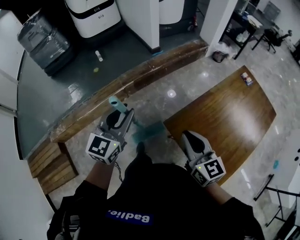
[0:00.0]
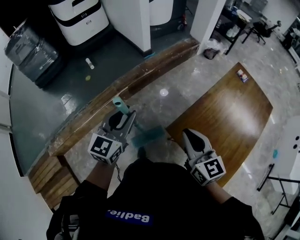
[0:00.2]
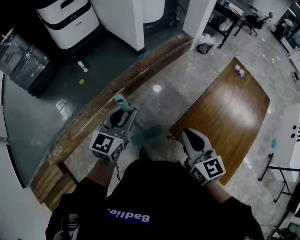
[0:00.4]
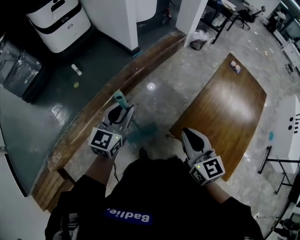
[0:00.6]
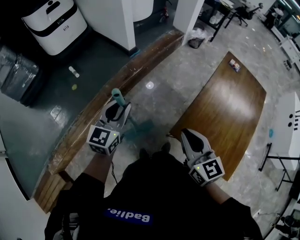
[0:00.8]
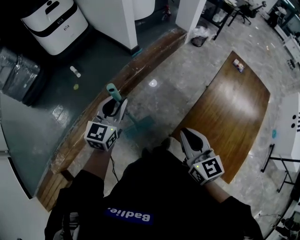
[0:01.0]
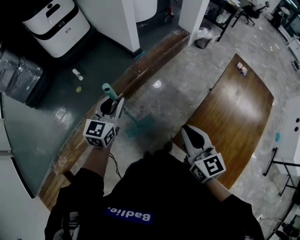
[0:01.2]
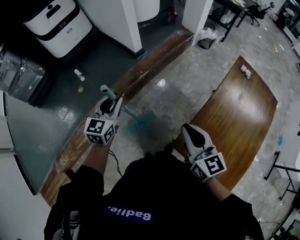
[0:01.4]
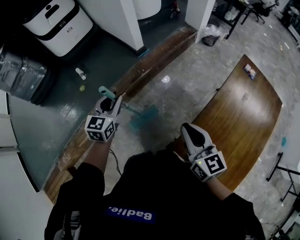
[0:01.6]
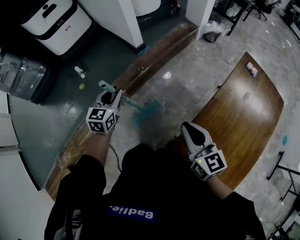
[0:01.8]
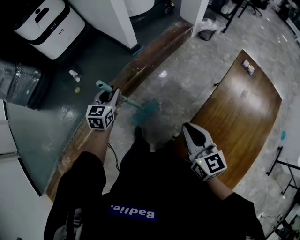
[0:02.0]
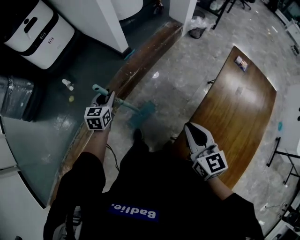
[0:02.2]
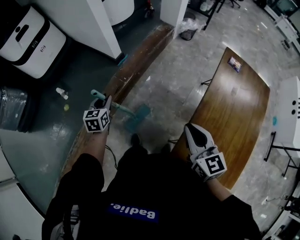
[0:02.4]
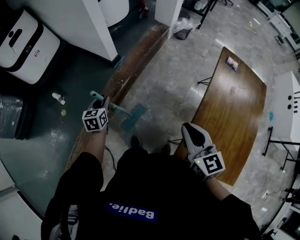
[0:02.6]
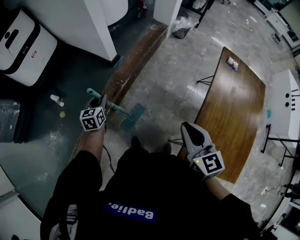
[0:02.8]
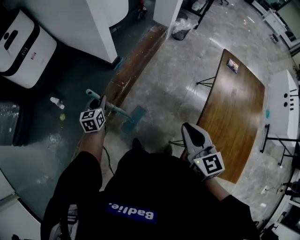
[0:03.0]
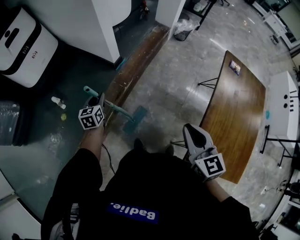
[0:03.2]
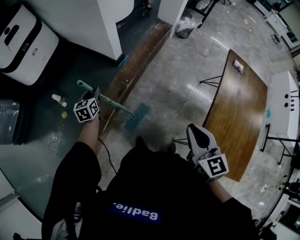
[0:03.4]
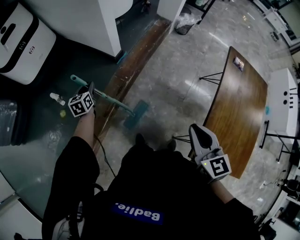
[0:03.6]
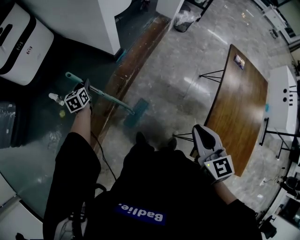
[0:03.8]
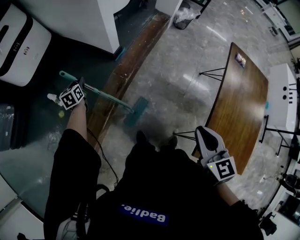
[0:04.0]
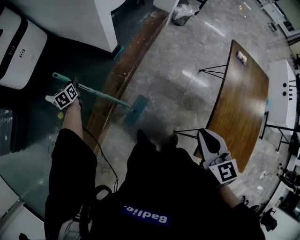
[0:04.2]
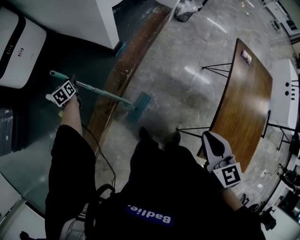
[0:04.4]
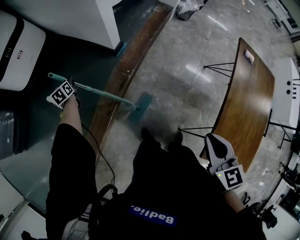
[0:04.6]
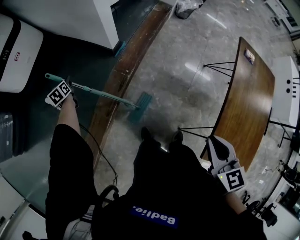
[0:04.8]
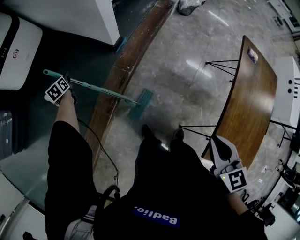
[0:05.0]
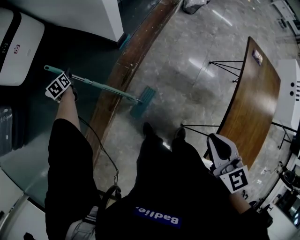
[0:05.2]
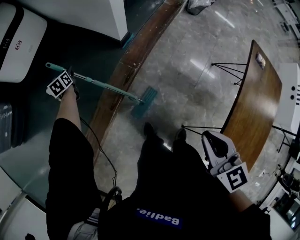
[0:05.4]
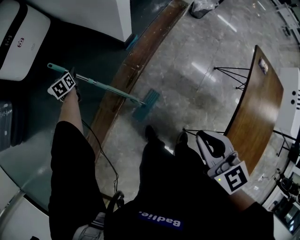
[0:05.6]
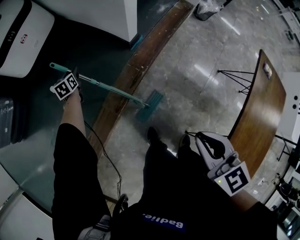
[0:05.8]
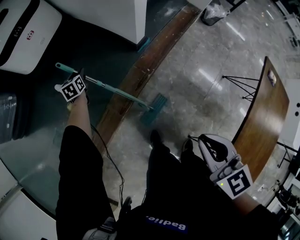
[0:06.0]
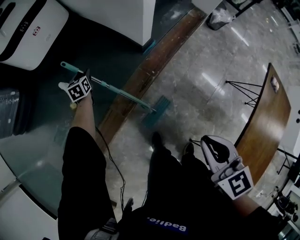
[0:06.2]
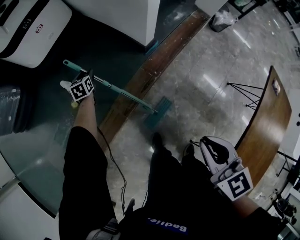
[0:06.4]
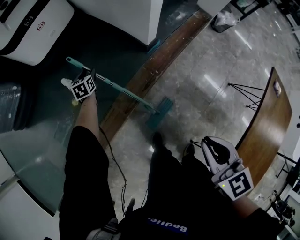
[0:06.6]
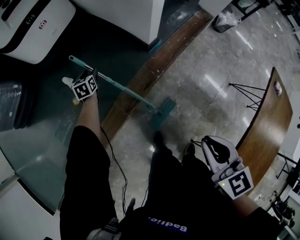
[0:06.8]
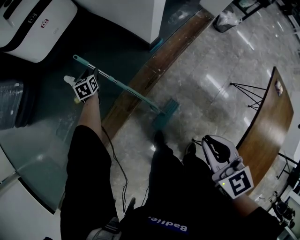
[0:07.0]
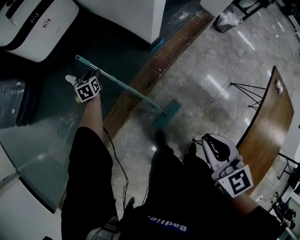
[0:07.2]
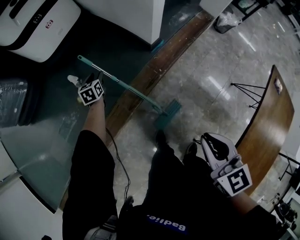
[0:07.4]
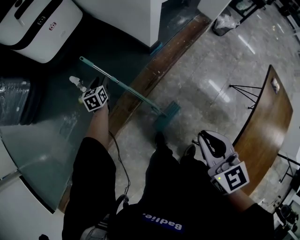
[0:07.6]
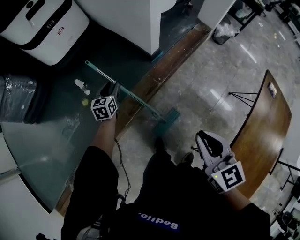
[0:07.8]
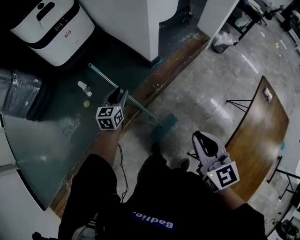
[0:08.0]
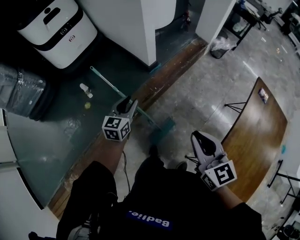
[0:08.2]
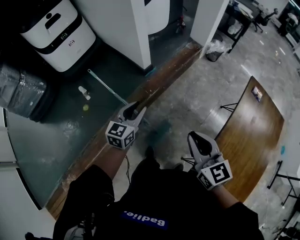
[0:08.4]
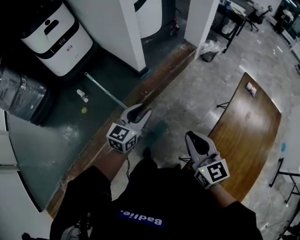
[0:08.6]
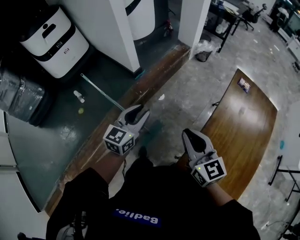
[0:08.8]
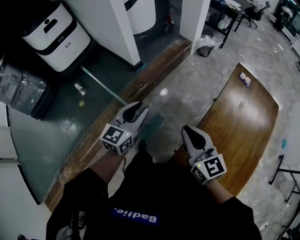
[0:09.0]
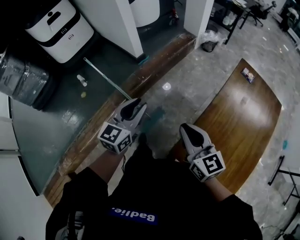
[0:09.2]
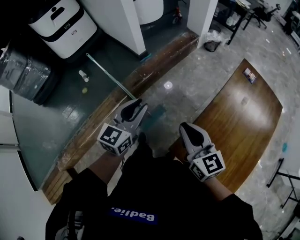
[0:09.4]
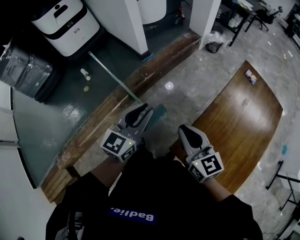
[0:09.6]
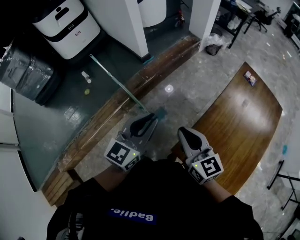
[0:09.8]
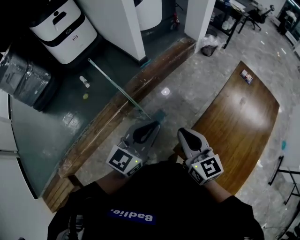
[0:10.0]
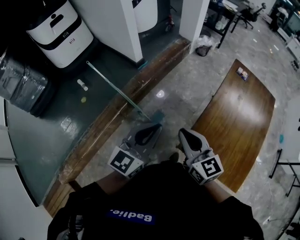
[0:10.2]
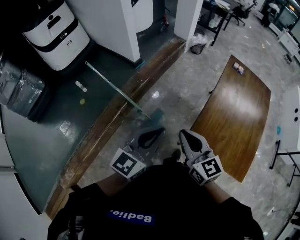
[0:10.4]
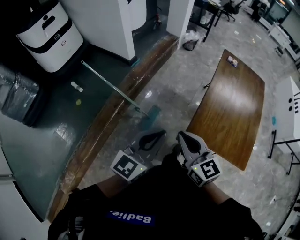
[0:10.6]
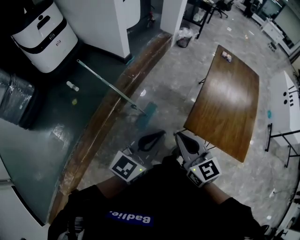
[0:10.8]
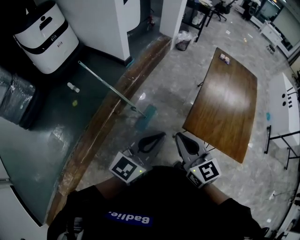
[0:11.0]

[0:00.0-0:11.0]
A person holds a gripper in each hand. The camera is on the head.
0:00.0 to 0:01.6: The two grippers go roughly 25 cm forward.
0:01.6 to 0:03.2: The right gripper heads forward and to the left, covering roughly 15 cm, and changes its angle by approximately 20 degrees. The left gripper moves forward, downward and to the left, approximately 30 cm.
0:03.2 to 0:04.8: The right gripper moves about 5 cm. Meanwhile the left gripper is displaced to the left, forward and downward by approximately 35 cm, and turns by approximately 20 degrees.
0:04.8 to 0:06.2: The right gripper shifts some 15 cm forward and to the left, and changes its angle by approximately 20 degrees, while the left gripper changes place by about 5 cm.
0:06.2 to 0:07.8: The right gripper shifts about 5 cm backward. Meanwhile the left gripper is displaced backward, upward and to the right by approximately 20 cm.
0:07.8 to 0:09.4: The right gripper moves to the right and backward, some 30 cm, while the left gripper moves to the right, backward and upward, roughly 60 cm, and turns by approximately 30 degrees.
0:09.4 to 0:11.0: The left gripper goes roughly 25 cm backward, turns by approximately 30 degrees, and closes; the right gripper shifts about 25 cm backward and to the left.

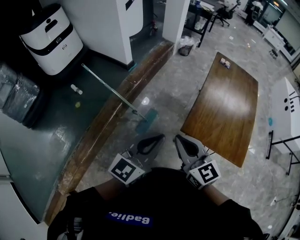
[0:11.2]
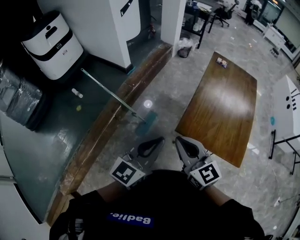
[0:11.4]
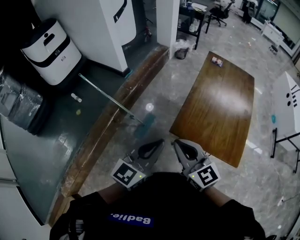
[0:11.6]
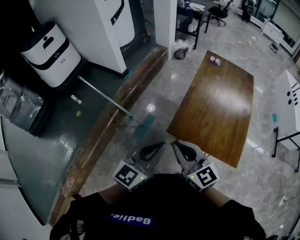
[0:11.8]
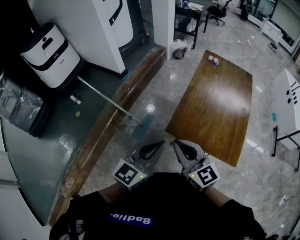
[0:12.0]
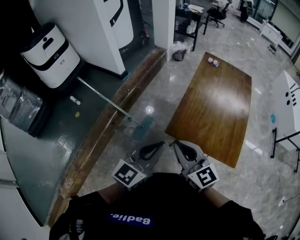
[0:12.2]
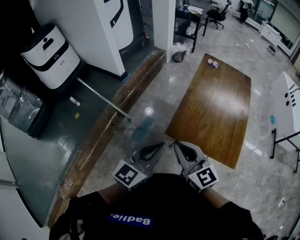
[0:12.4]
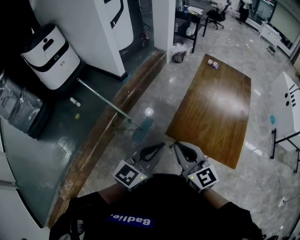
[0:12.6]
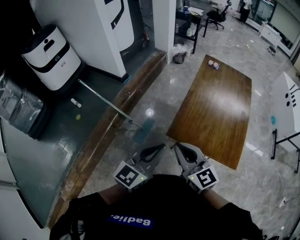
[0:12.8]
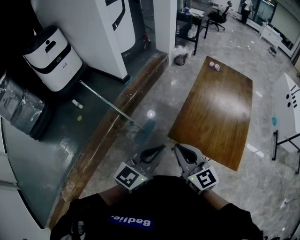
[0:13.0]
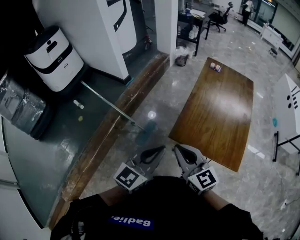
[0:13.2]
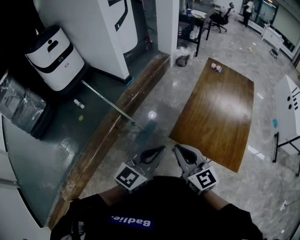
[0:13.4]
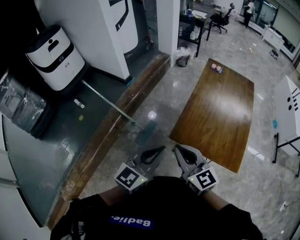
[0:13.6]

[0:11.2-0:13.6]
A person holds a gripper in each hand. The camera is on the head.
0:11.2 to 0:12.4: The grippers both shift to the right by approximately 15 cm.
0:12.4 to 0:13.6: The grippers stay close to where they were, moving slightly.

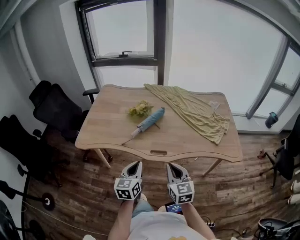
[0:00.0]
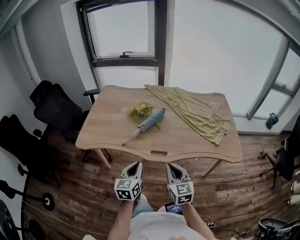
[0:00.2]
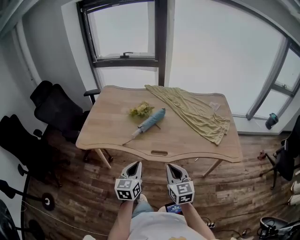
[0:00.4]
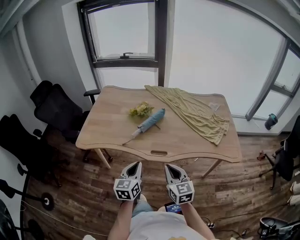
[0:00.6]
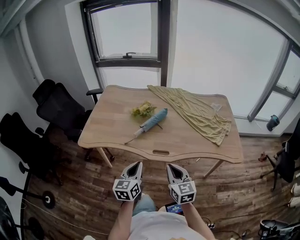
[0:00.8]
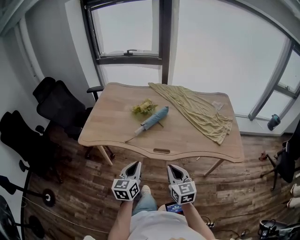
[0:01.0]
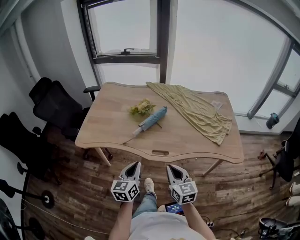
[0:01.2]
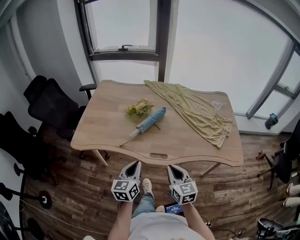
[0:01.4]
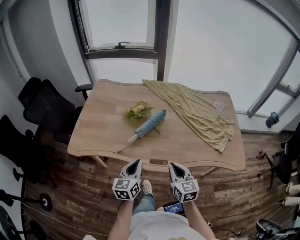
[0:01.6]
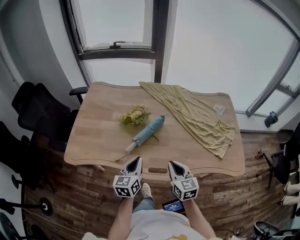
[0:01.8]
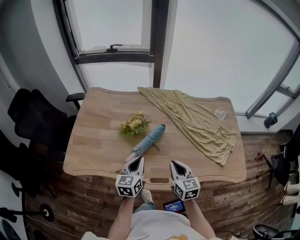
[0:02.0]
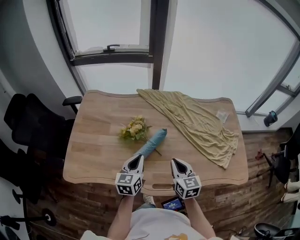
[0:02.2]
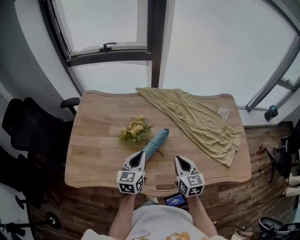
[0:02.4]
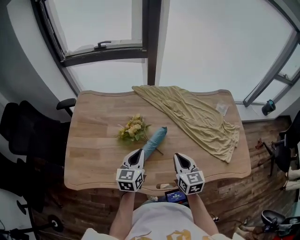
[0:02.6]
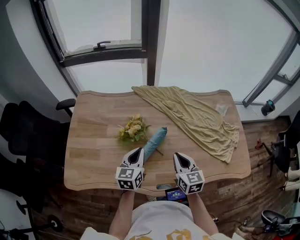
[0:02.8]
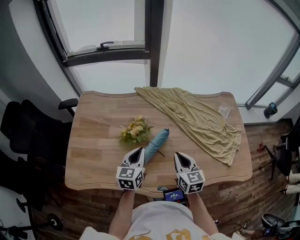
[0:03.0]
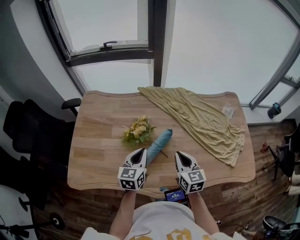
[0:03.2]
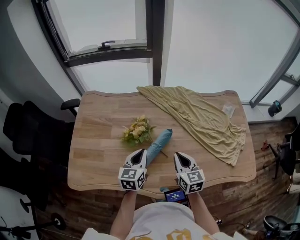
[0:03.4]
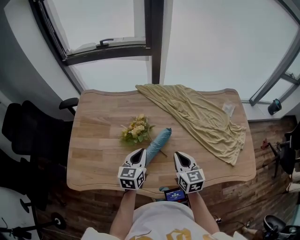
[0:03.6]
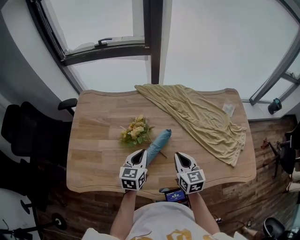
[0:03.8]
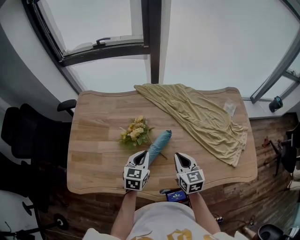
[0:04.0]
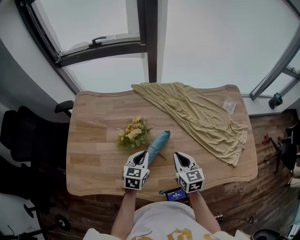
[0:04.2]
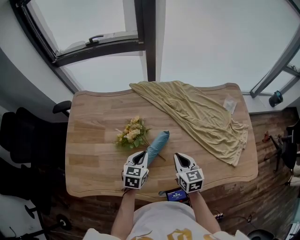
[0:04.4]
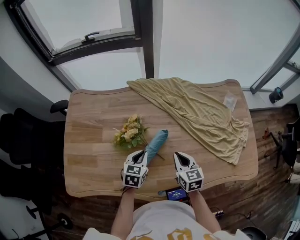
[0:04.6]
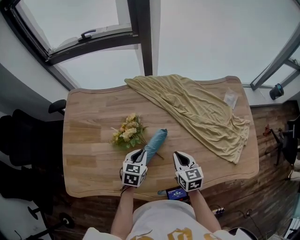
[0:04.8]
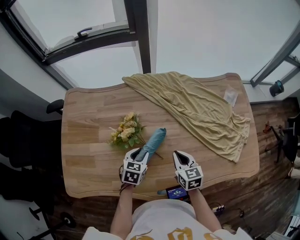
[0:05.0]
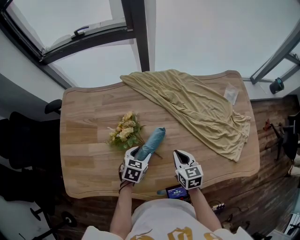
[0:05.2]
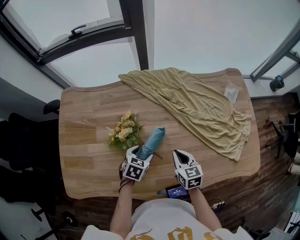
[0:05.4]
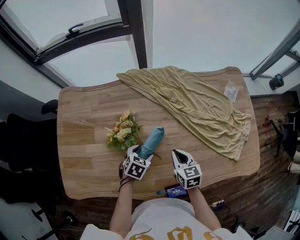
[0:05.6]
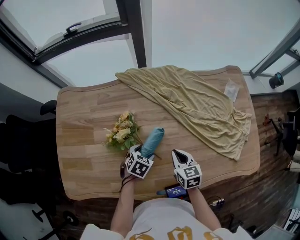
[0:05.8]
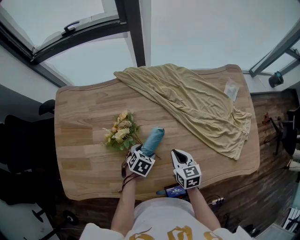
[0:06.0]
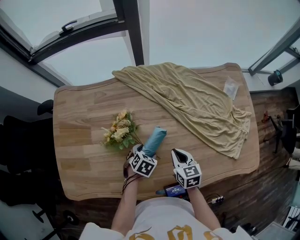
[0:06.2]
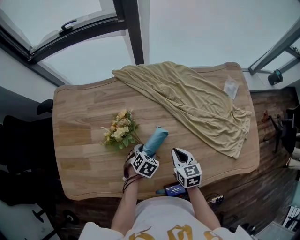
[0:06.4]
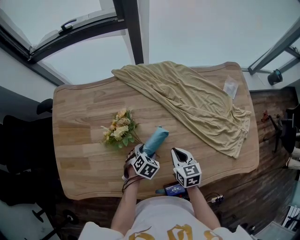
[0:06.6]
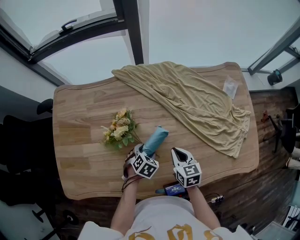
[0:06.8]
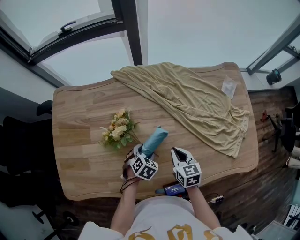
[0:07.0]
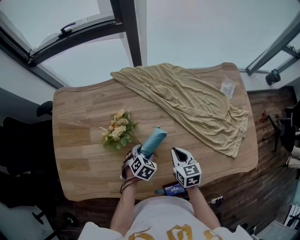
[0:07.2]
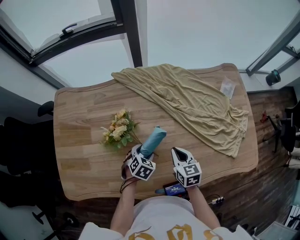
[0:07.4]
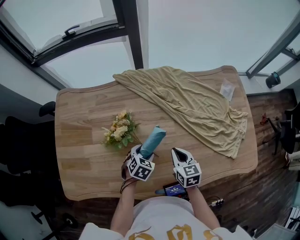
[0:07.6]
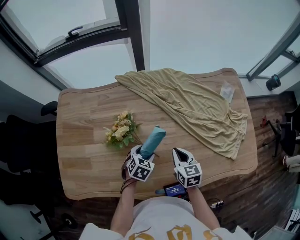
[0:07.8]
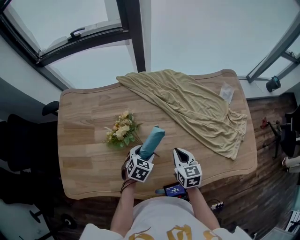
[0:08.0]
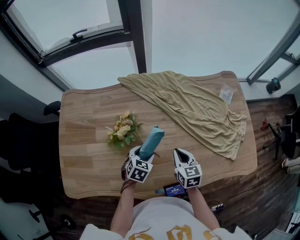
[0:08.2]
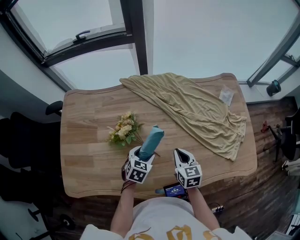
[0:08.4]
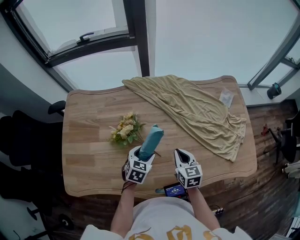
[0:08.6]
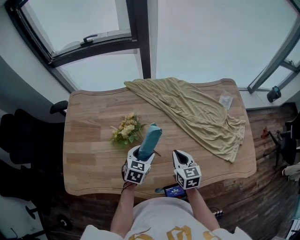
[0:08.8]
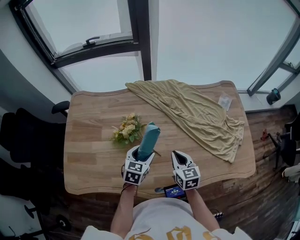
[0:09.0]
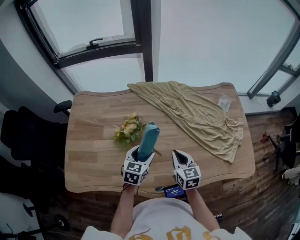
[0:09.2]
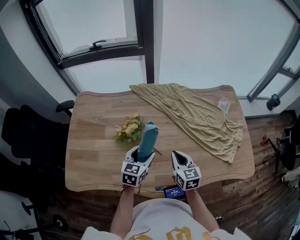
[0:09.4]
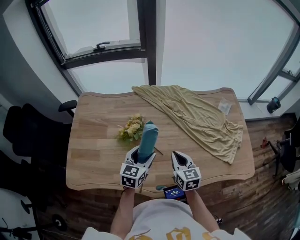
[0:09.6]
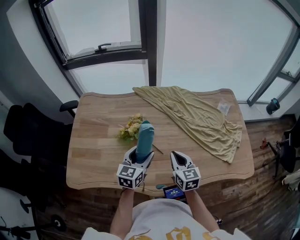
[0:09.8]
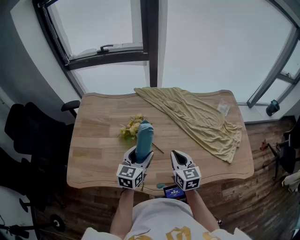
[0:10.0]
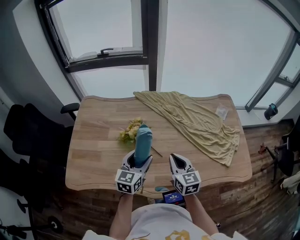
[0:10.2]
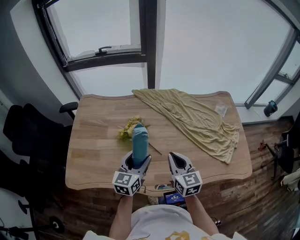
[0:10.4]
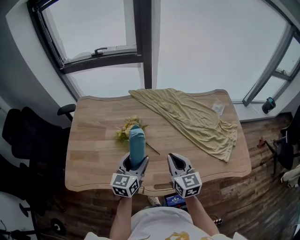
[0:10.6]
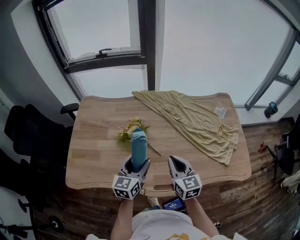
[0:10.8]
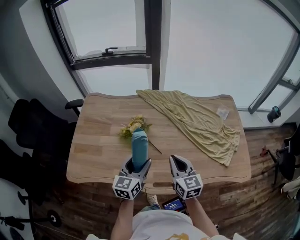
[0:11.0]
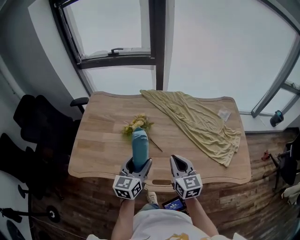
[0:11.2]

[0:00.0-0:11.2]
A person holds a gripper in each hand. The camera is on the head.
0:00.0 to 0:01.6: Both grippers move forward, approximately 10 cm.
0:01.6 to 0:03.2: The two grippers go some 25 cm forward.
0:03.2 to 0:04.8: Both grippers move downward, about 10 cm. The left gripper turns by roughly 30 degrees.
0:04.8 to 0:06.4: The left gripper shifts approximately 10 cm downward and to the right, rotates some 30 degrees, and opens its fingers; the right gripper is displaced downward by some 5 cm.
0:06.4 to 0:08.0: The left gripper heads upward, covering about 5 cm.
0:08.0 to 0:09.6: The left gripper moves upward, some 15 cm, and angles its fingers upward, by about 30 degrees; the right gripper shifts about 10 cm upward and backward.
0:09.6 to 0:11.2: The left gripper heads backward and upward, covering roughly 15 cm. Meanwhile the right gripper moves upward and backward, some 10 cm.
